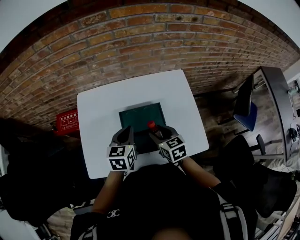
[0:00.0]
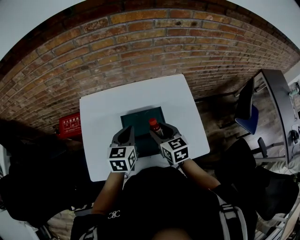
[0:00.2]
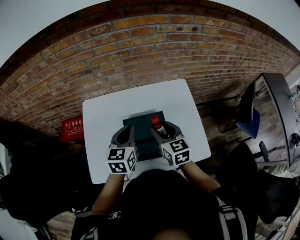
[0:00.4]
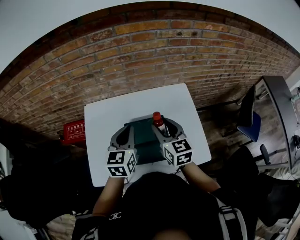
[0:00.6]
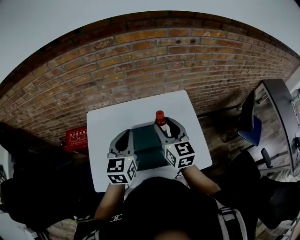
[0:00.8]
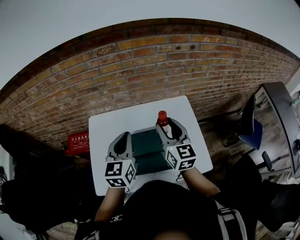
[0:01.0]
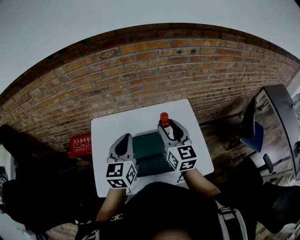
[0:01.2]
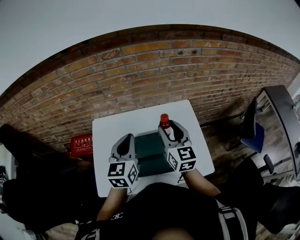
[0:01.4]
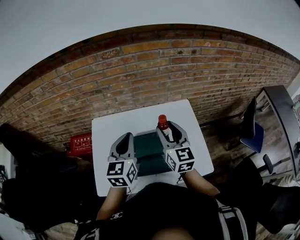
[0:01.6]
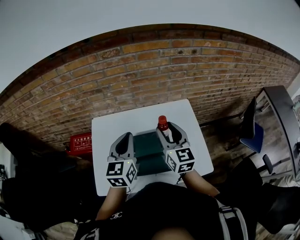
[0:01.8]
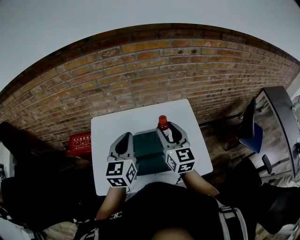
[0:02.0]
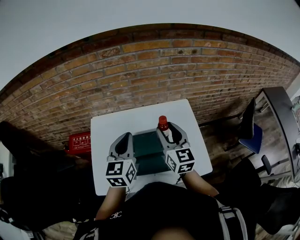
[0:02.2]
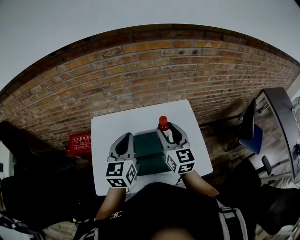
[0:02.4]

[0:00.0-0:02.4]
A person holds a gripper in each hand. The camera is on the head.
0:00.0 to 0:01.2: The two grippers go about 20 cm upward. The right gripper angles its fingers upward, by approximately 30 degrees. Meanwhile the left gripper changes its angle by approximately 20 degrees.
0:01.2 to 0:02.4: The grippers move only a little.

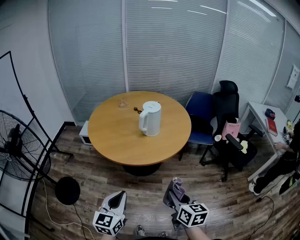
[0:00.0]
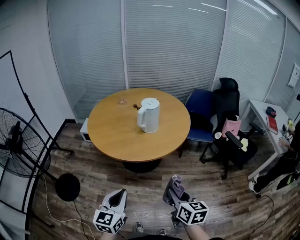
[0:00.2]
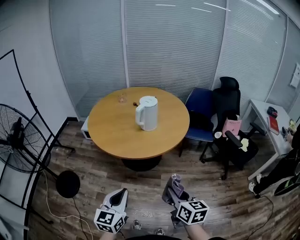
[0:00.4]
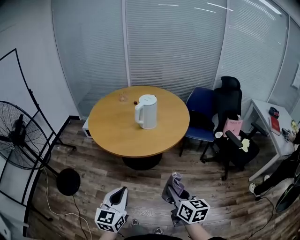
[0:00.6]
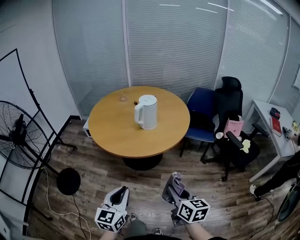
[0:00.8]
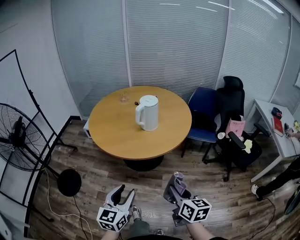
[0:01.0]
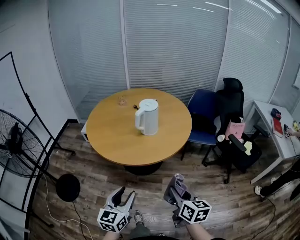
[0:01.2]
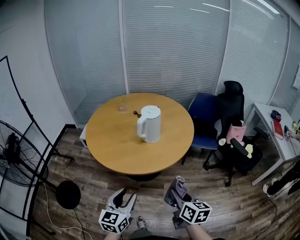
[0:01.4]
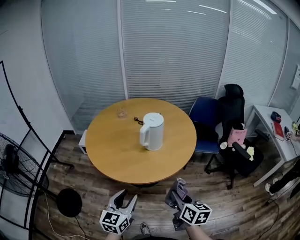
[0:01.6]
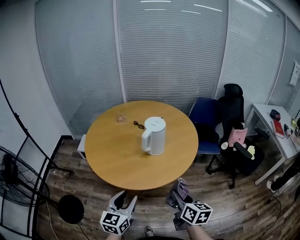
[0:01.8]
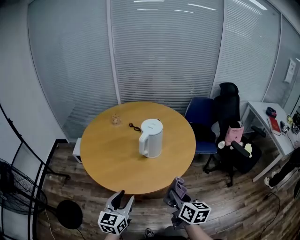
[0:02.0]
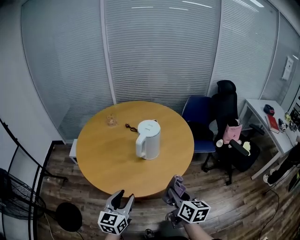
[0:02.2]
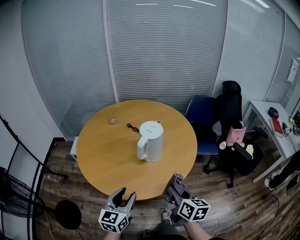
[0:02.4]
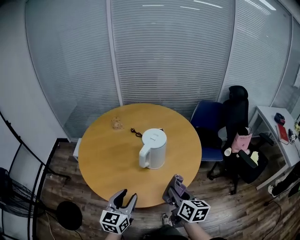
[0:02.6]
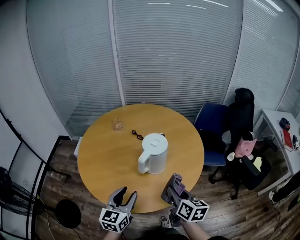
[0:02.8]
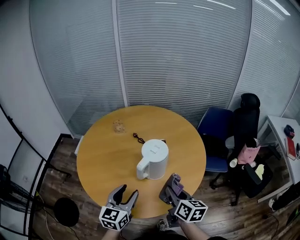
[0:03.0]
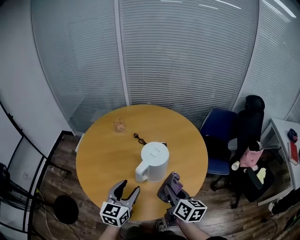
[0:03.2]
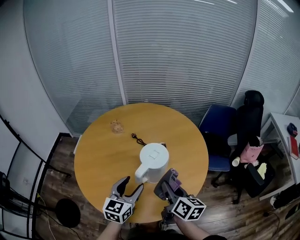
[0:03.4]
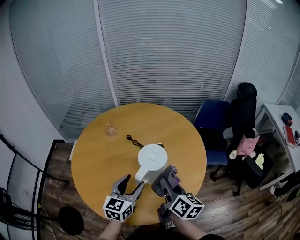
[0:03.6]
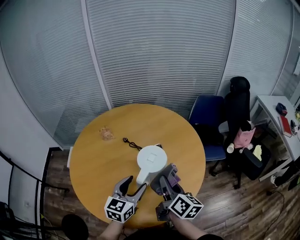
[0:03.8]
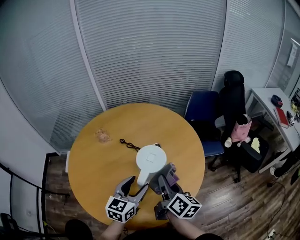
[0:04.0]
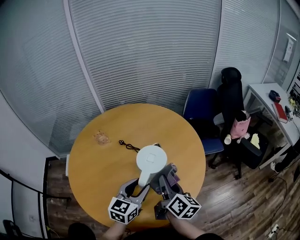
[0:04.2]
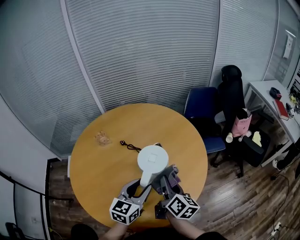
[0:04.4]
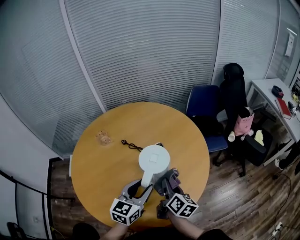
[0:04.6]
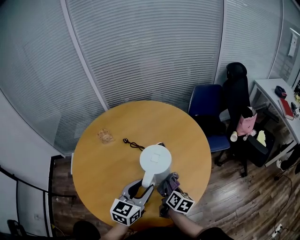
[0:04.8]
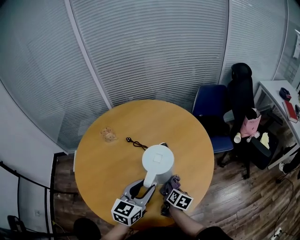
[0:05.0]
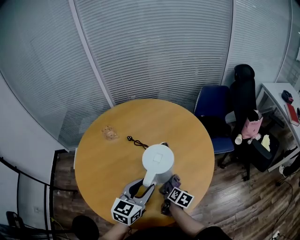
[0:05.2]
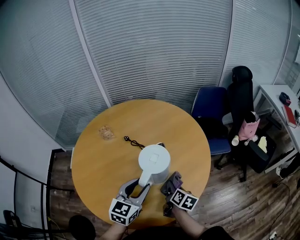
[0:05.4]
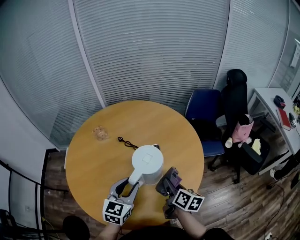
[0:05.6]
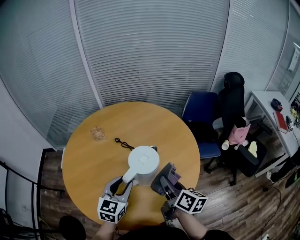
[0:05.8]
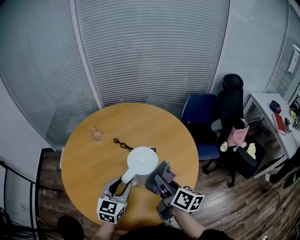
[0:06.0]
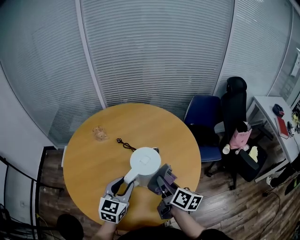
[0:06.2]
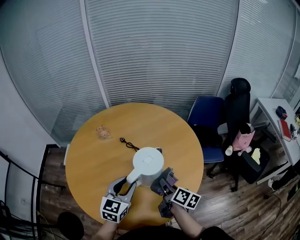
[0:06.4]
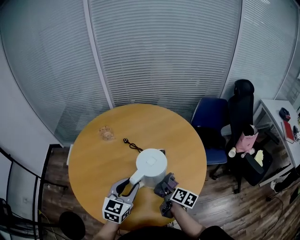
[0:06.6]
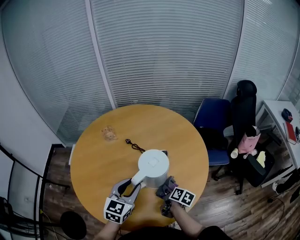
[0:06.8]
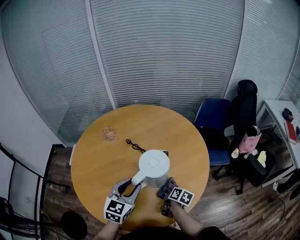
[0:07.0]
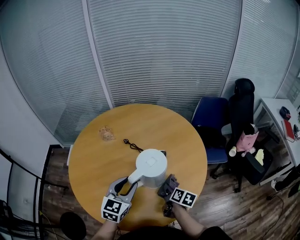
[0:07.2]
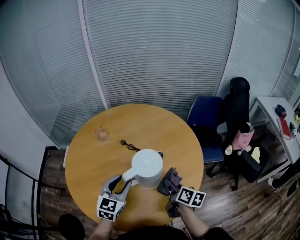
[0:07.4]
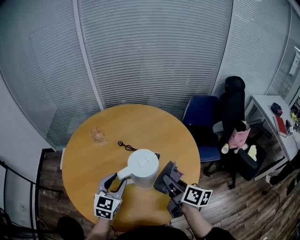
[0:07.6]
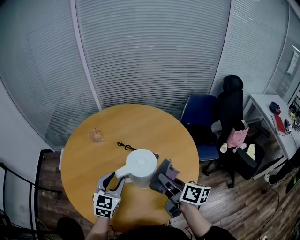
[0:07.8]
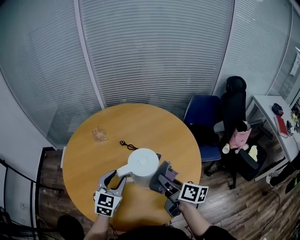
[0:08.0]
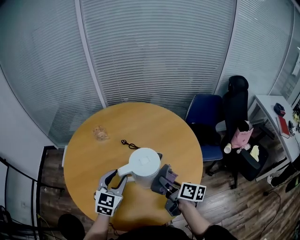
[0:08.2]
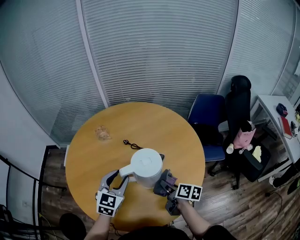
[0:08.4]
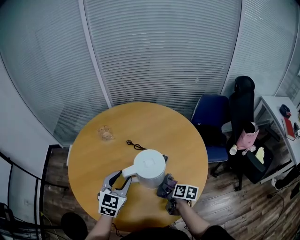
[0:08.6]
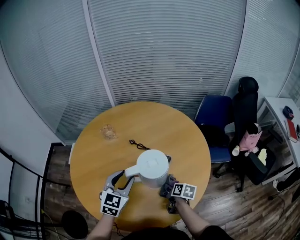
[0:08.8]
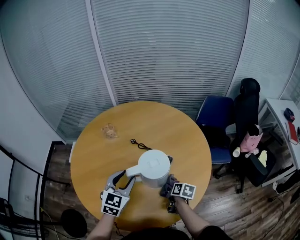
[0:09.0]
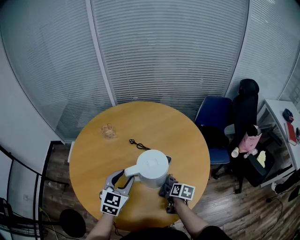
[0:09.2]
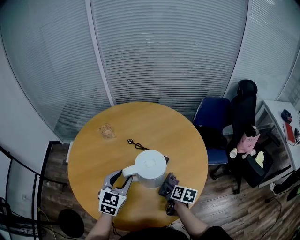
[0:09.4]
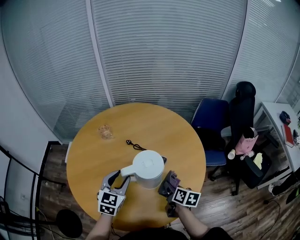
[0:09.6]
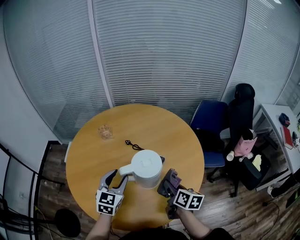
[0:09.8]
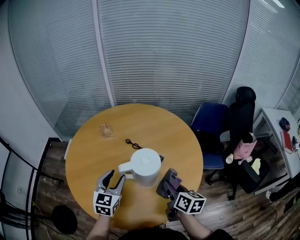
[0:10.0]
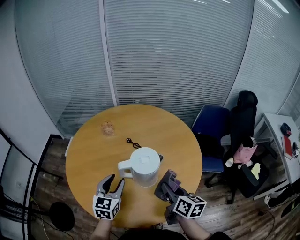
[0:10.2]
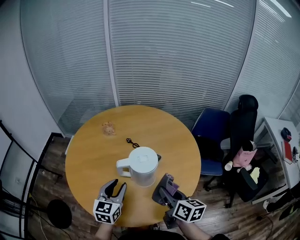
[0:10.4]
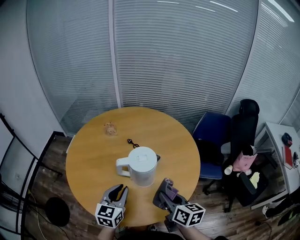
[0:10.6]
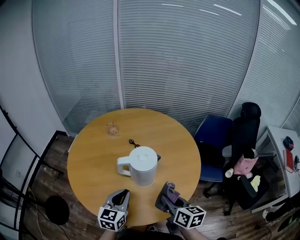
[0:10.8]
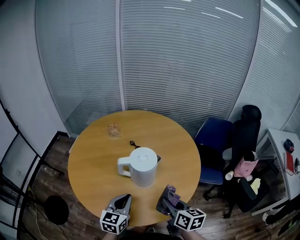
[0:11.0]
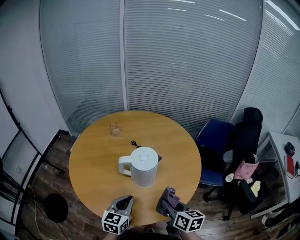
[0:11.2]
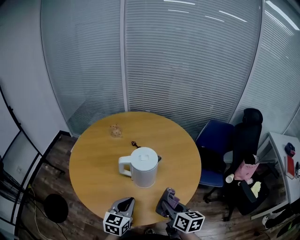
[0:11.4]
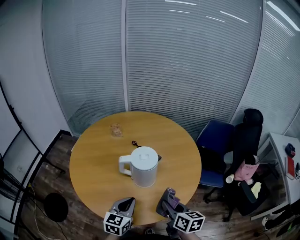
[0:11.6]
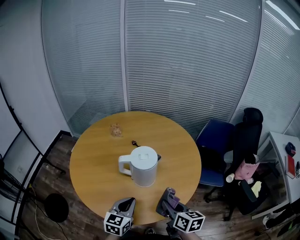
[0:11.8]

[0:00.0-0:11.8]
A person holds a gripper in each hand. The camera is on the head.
0:00.0 to 0:01.4: The left gripper heads forward and to the right, covering about 10 cm, and opens its fingers. The right gripper travels forward by roughly 10 cm.
0:01.4 to 0:03.0: Both grippers move forward, some 30 cm.
0:03.0 to 0:04.4: The right gripper moves roughly 10 cm, and turns by about 30 degrees; the left gripper moves some 10 cm, and turns by some 30 degrees.
0:04.4 to 0:06.0: The right gripper moves about 20 cm downward and comes back, and swivels roughly 20 degrees.
0:06.0 to 0:07.4: The right gripper goes some 10 cm downward.
0:07.4 to 0:08.8: The right gripper goes approximately 15 cm downward, and swivels roughly 20 degrees.
0:08.8 to 0:10.4: The left gripper is displaced backward by about 10 cm, and rotates approximately 20 degrees. Meanwhile the right gripper travels upward by some 20 cm, and rotates some 30 degrees.
0:10.4 to 0:11.8: The right gripper goes roughly 5 cm backward, while the left gripper heads backward and to the right, covering some 10 cm, and closes up.

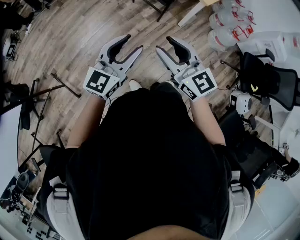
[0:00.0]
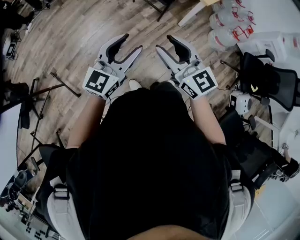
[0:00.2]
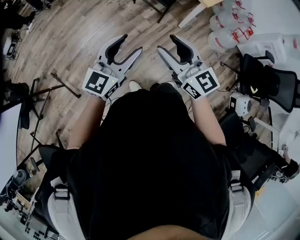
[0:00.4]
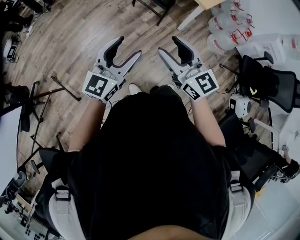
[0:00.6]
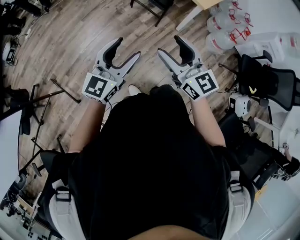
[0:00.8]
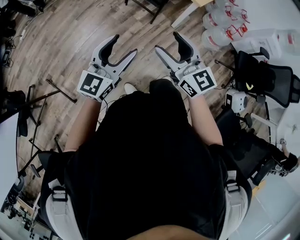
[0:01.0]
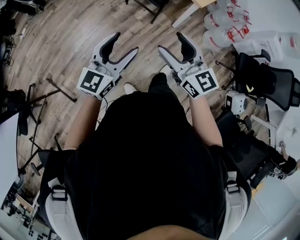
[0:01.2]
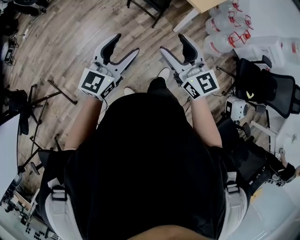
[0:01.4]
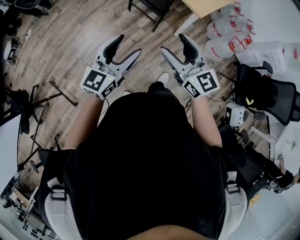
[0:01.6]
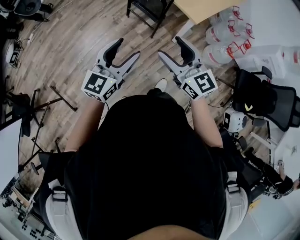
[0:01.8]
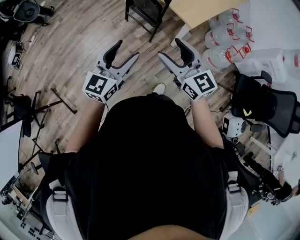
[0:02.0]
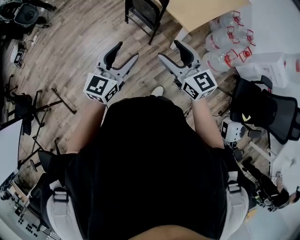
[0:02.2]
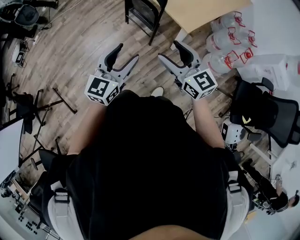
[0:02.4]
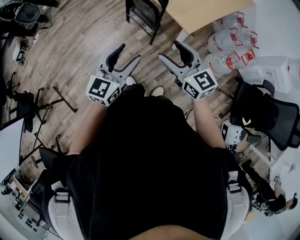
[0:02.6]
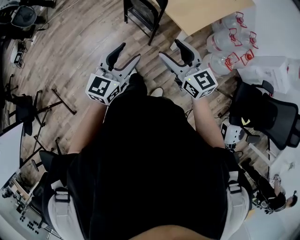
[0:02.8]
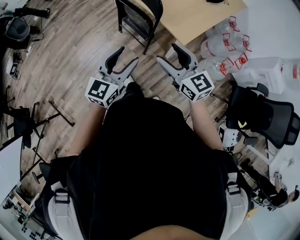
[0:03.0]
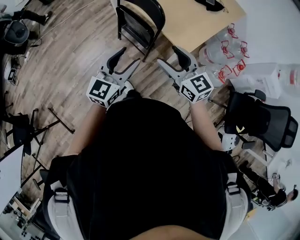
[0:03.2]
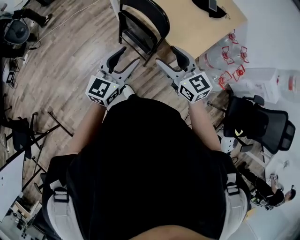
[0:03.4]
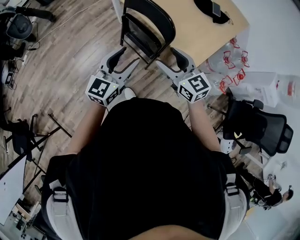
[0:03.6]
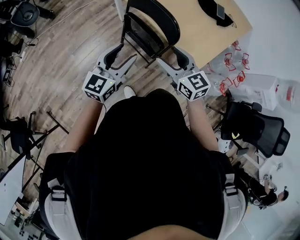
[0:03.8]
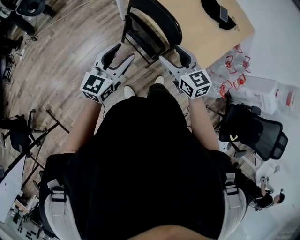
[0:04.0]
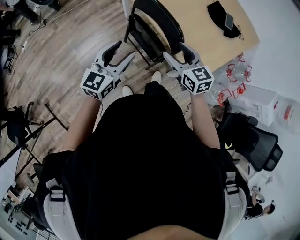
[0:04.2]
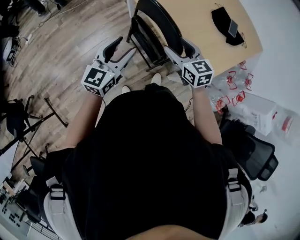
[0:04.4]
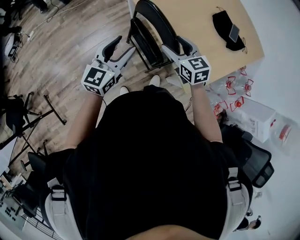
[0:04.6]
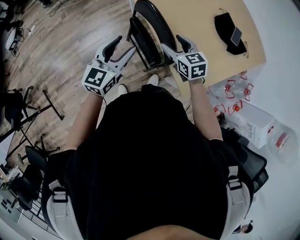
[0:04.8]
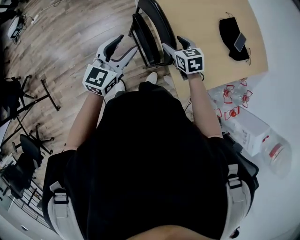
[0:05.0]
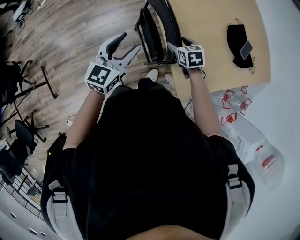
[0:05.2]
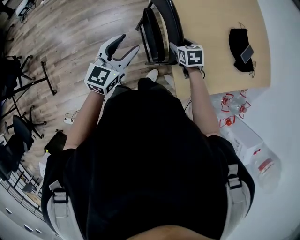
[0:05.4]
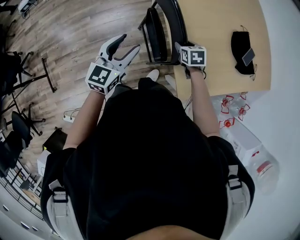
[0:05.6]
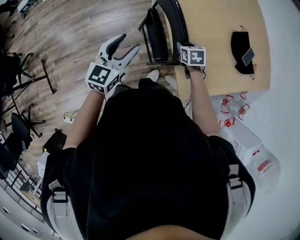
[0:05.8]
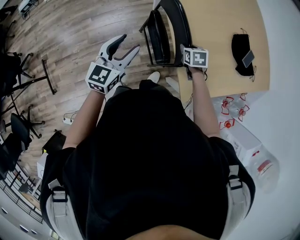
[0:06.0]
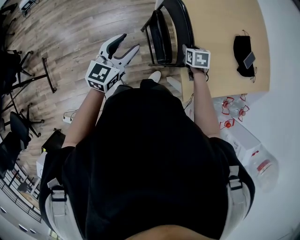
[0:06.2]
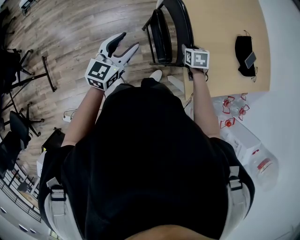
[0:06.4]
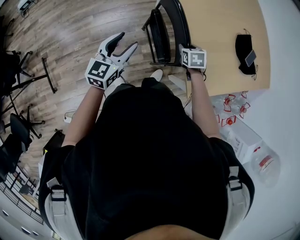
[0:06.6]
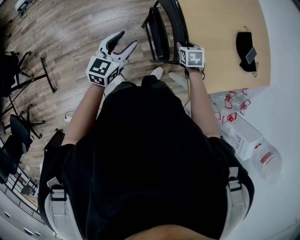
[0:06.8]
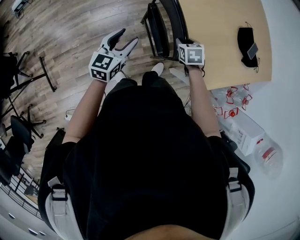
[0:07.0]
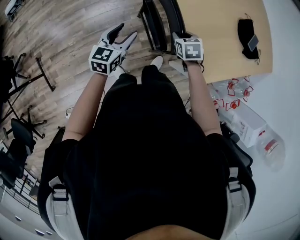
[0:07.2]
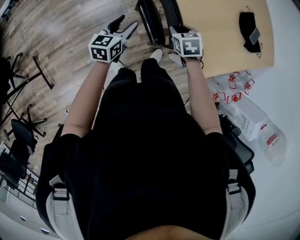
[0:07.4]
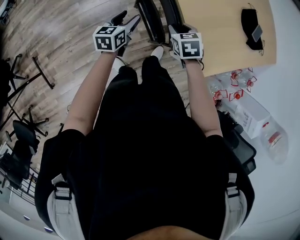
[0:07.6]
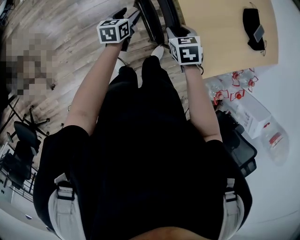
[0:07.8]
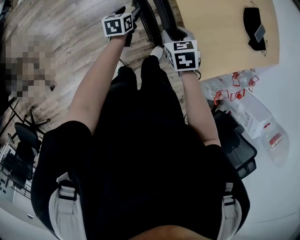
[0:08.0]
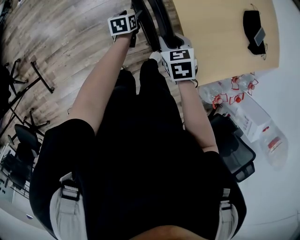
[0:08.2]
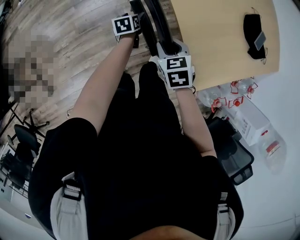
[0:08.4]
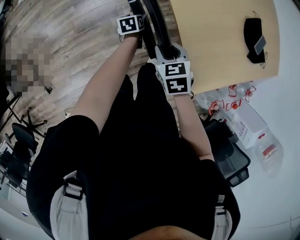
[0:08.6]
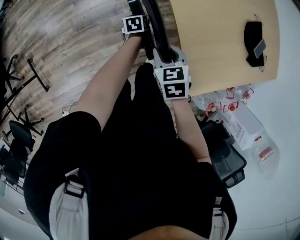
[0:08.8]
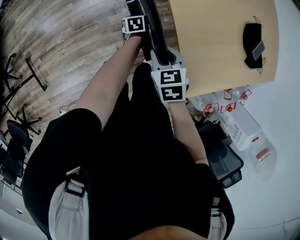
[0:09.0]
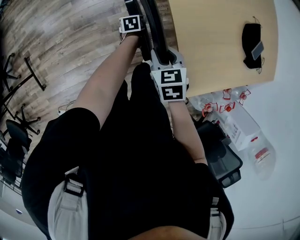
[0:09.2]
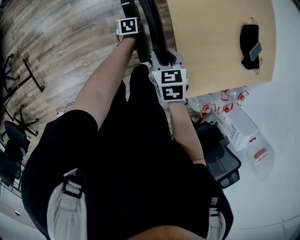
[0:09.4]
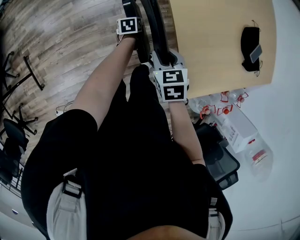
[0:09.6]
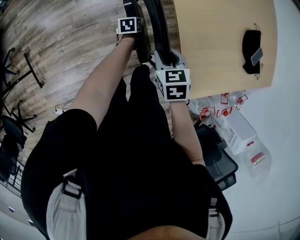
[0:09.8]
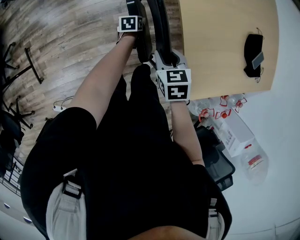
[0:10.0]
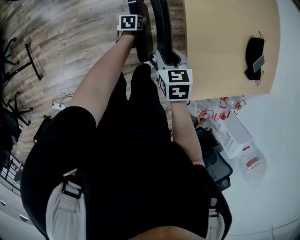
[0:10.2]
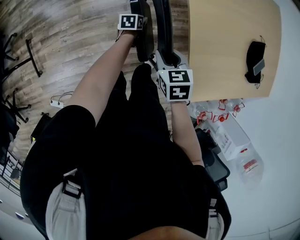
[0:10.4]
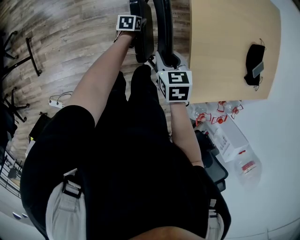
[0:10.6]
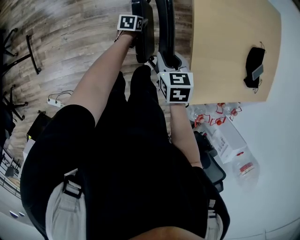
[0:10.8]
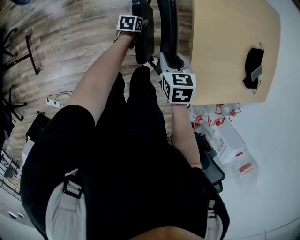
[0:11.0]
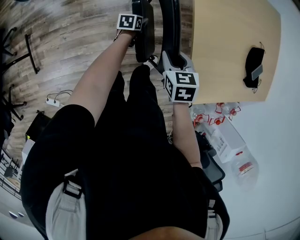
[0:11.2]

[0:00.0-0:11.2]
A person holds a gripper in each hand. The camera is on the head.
0:00.0 to 0:01.6: Both grippers travel together forward and to the right, roughly 15 cm. The right gripper opens up.
0:01.6 to 0:03.2: The two grippers go roughly 30 cm forward and to the right.
0:03.2 to 0:04.8: The two grippers go some 35 cm forward. The right gripper rotates about 20 degrees.
0:04.8 to 0:06.4: The right gripper is displaced downward by about 10 cm, turns by roughly 30 degrees, and closes. Meanwhile the left gripper shifts about 10 cm to the left.
0:06.4 to 0:08.0: The right gripper heads to the left, covering about 10 cm, while the left gripper moves downward and forward, about 30 cm, and changes its angle by about 40 degrees.
0:08.0 to 0:09.6: The left gripper travels downward by roughly 15 cm, and turns by about 20 degrees.
0:09.6 to 0:11.2: The left gripper is displaced to the left by roughly 10 cm, while the right gripper travels to the left by roughly 5 cm.
